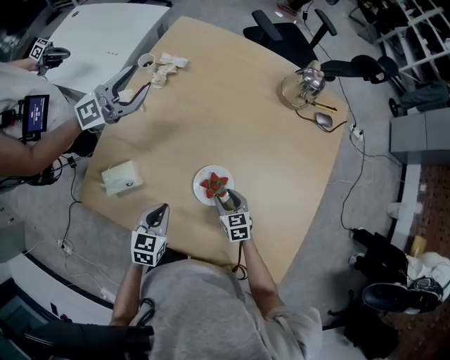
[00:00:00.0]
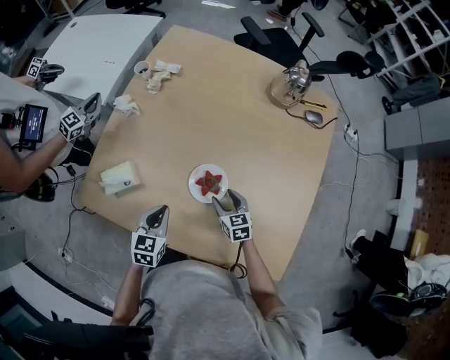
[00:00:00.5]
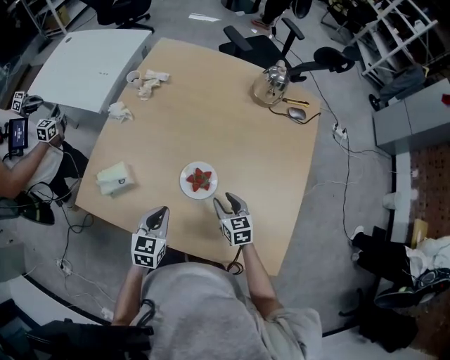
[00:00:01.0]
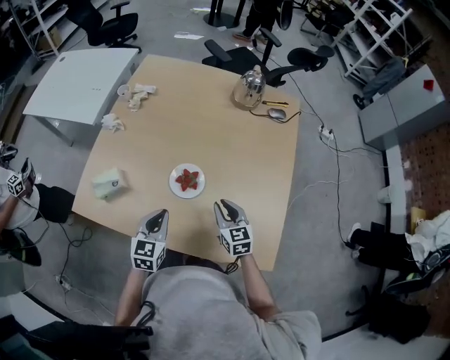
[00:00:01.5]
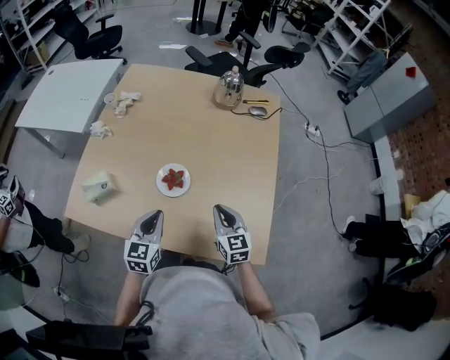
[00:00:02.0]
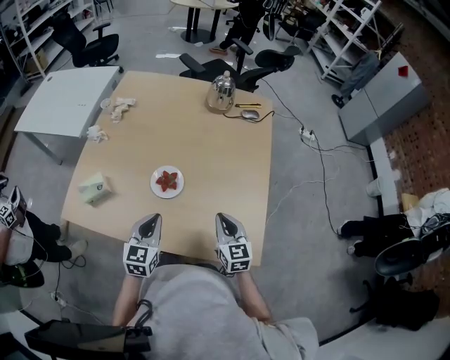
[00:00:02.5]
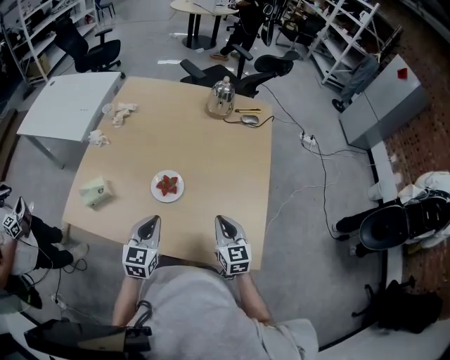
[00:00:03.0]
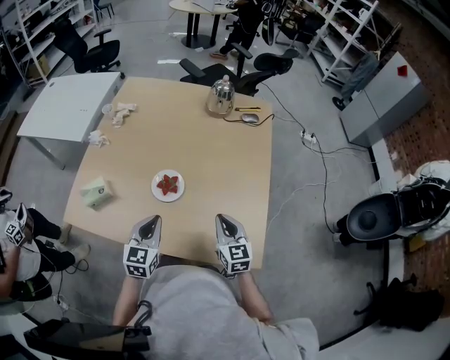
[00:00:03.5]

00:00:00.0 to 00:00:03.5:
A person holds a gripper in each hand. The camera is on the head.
00:00:00.0 to 00:00:02.0: The right gripper heads upward, backward and to the right, covering approximately 25 cm, rotates about 30 degrees, and closes up. Meanwhile the left gripper goes about 20 cm to the right, upward and backward.
00:00:02.0 to 00:00:03.5: The grippers move only a little.

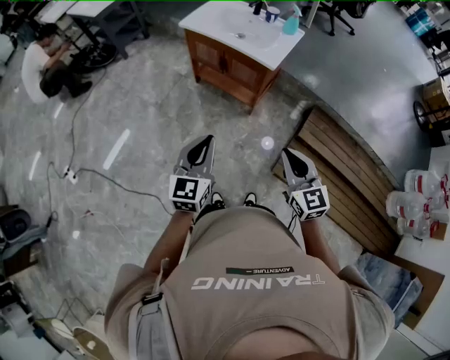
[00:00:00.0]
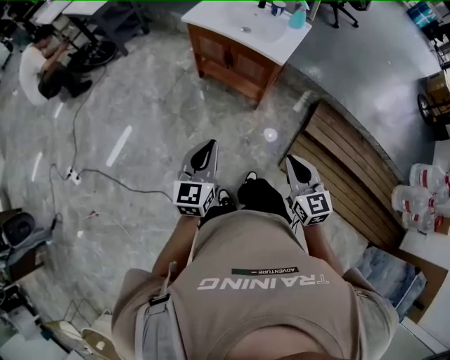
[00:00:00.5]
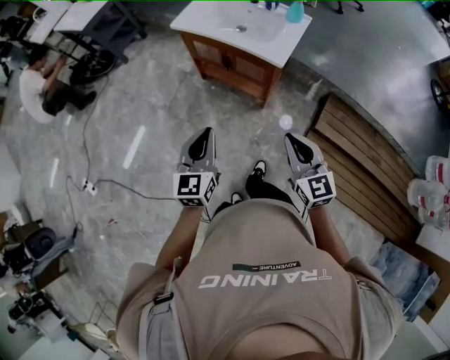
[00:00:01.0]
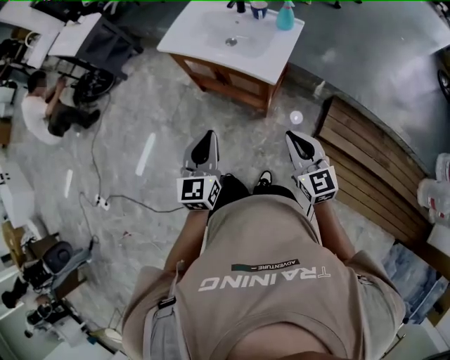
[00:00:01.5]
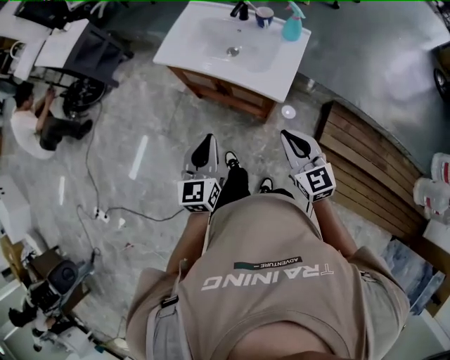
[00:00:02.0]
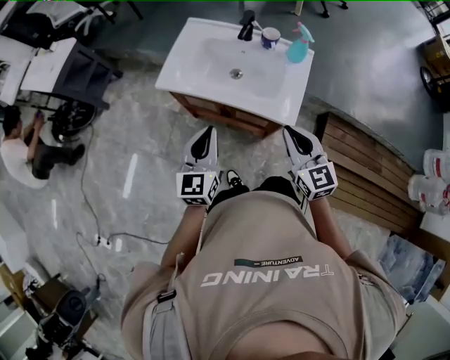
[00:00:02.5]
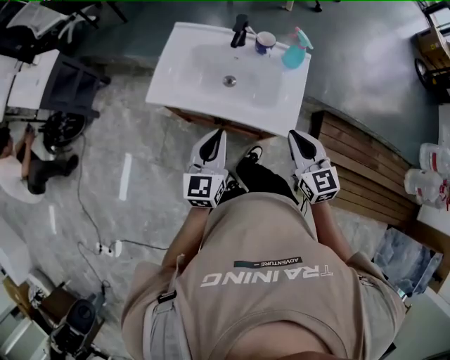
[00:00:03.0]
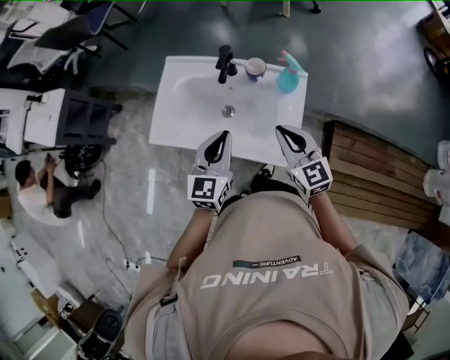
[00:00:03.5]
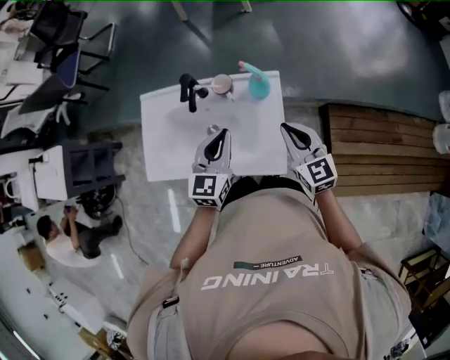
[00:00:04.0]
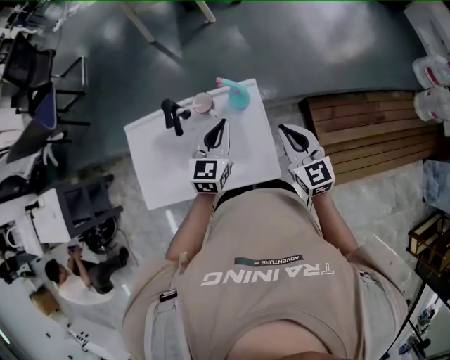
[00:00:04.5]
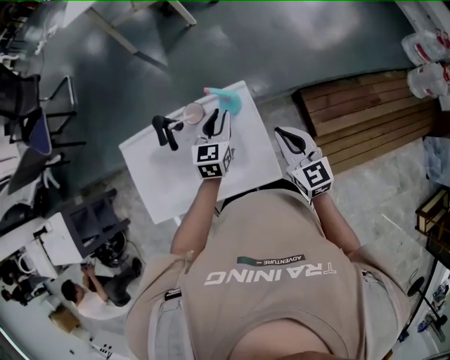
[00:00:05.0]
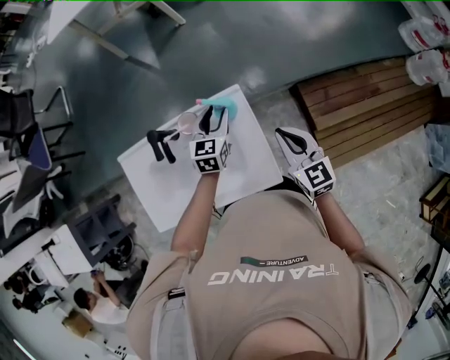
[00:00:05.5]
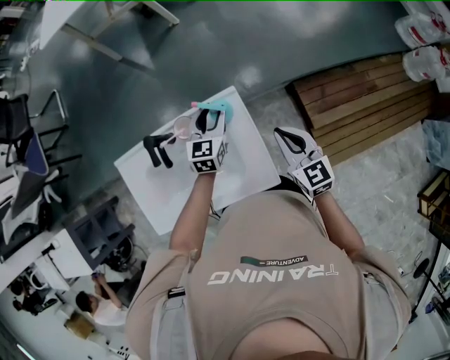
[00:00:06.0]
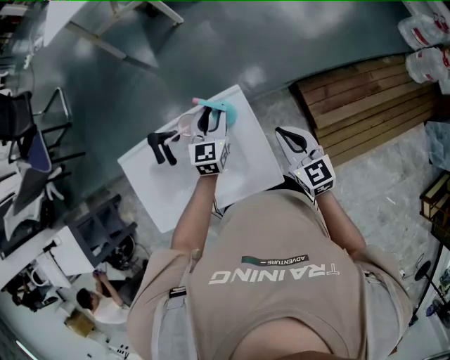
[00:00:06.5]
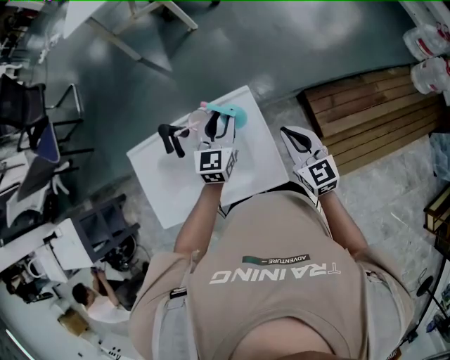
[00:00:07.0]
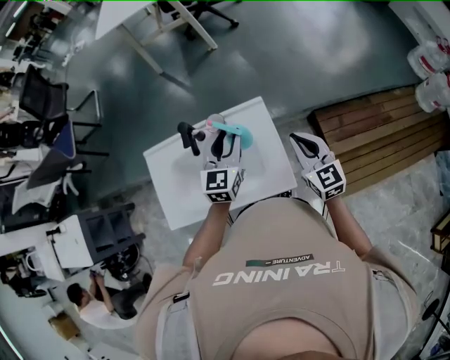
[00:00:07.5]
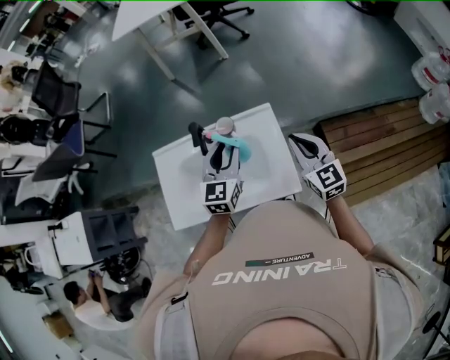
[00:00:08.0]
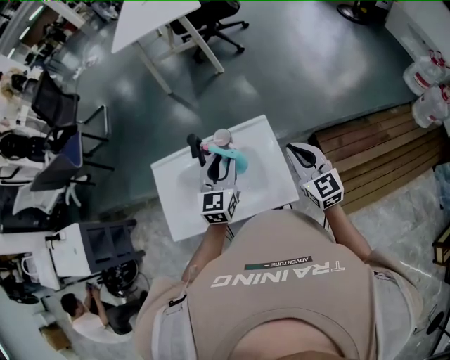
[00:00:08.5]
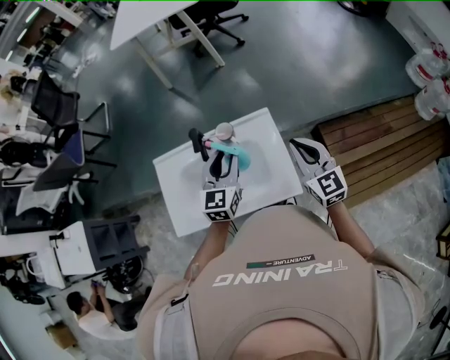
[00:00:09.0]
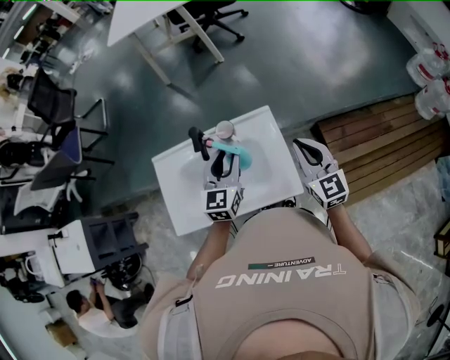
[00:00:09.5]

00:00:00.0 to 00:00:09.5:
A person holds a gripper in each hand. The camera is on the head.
00:00:00.0 to 00:00:02.0: Both grippers travel together forward, some 30 cm.
00:00:02.0 to 00:00:04.0: The left gripper ends up approximately 40 cm from where it was, and turns by about 30 degrees. Meanwhile the right gripper shifts by approximately 30 cm, and changes its angle by some 30 degrees.
00:00:04.0 to 00:00:05.5: The right gripper shifts about 5 cm to the right. Meanwhile the left gripper travels forward, downward and to the right by approximately 20 cm, and opens its fingers.
00:00:05.5 to 00:00:07.5: The left gripper heads upward and backward, covering some 15 cm.
00:00:07.5 to 00:00:09.5: The left gripper moves about 5 cm.

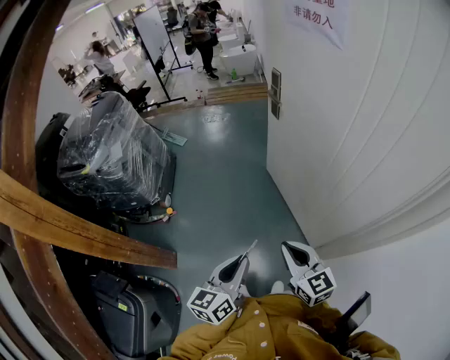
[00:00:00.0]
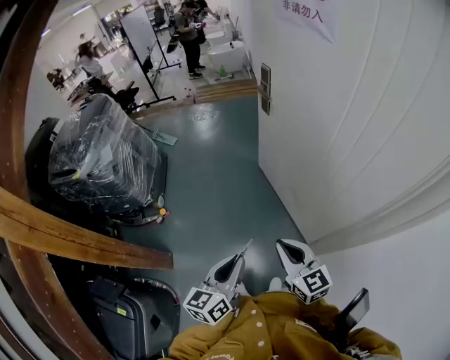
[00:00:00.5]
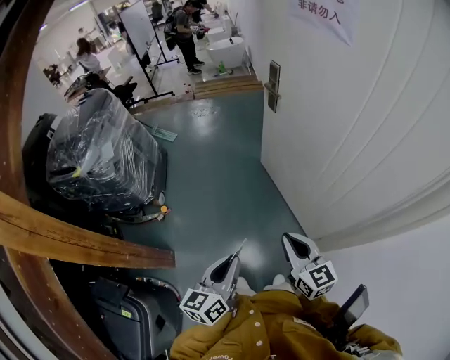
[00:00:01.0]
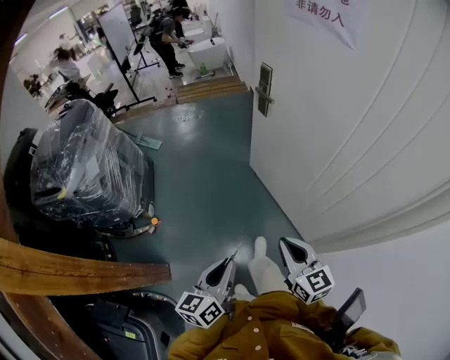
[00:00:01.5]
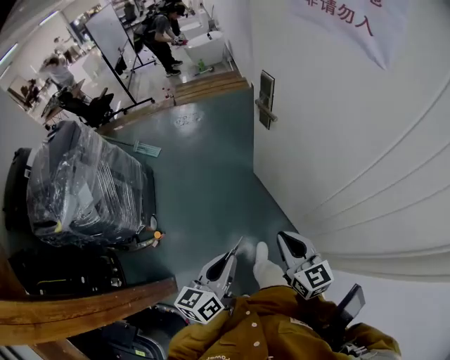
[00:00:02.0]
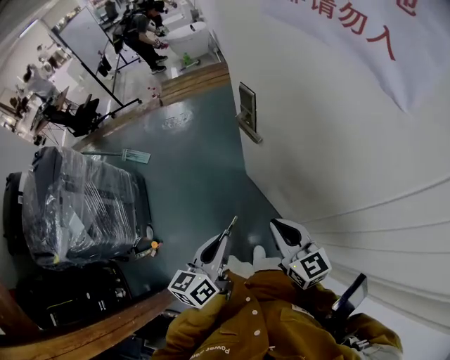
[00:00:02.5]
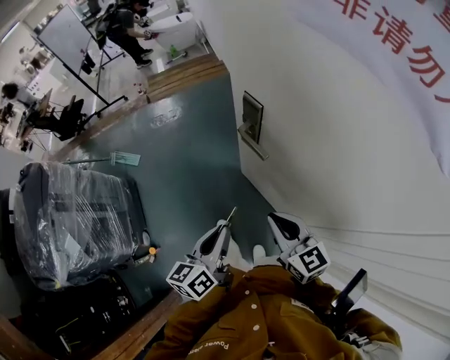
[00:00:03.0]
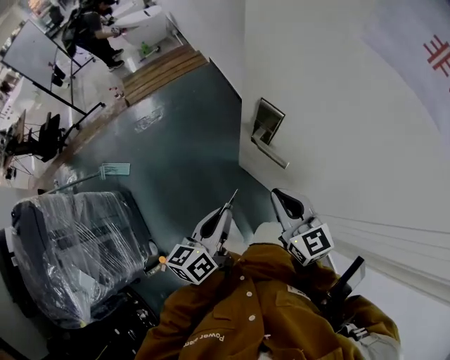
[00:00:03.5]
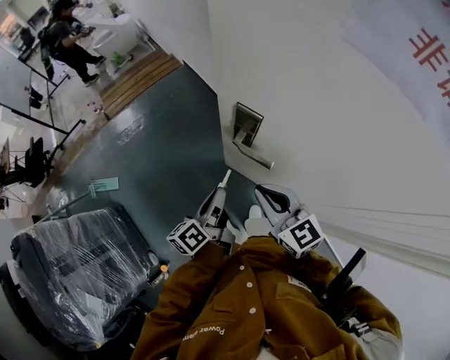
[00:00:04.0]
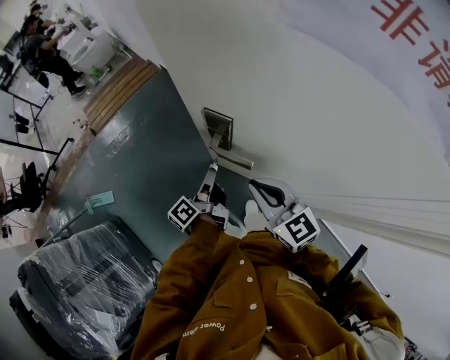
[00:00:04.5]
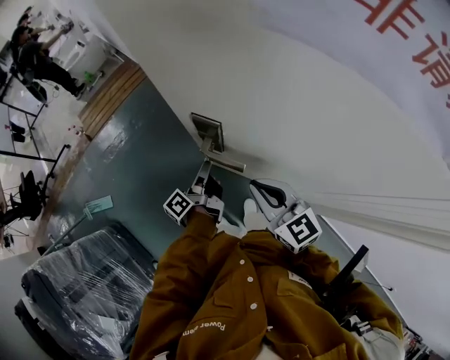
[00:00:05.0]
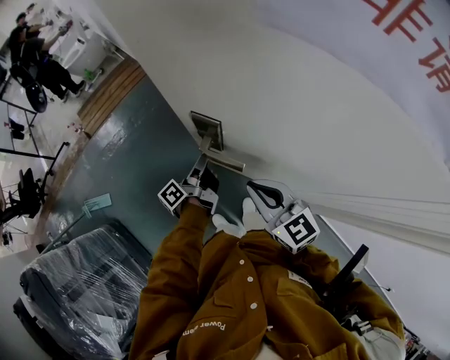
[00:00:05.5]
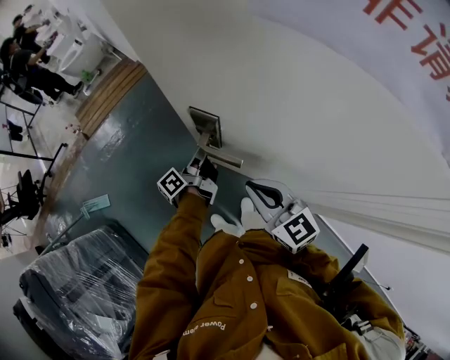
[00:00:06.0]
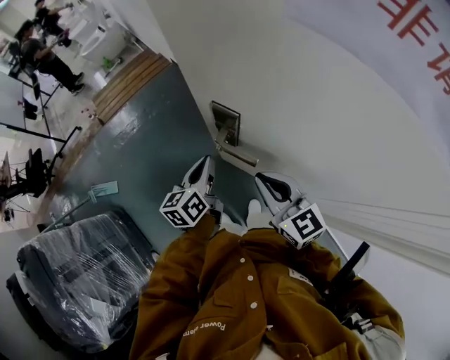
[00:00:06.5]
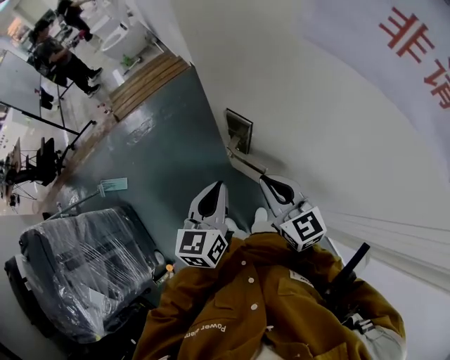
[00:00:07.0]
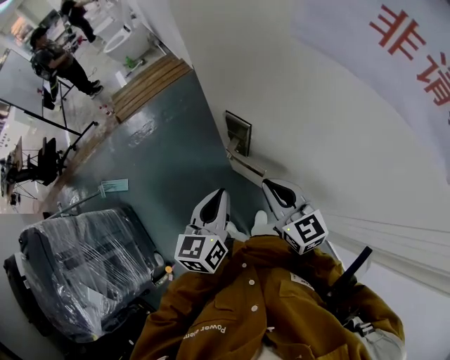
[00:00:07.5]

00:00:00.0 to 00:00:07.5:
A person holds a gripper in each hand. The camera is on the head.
00:00:00.0 to 00:00:02.0: The grippers both shift forward by some 25 cm.
00:00:02.0 to 00:00:04.0: The grippers both shift forward by approximately 40 cm. The left gripper swivels roughly 30 degrees.
00:00:04.0 to 00:00:05.5: The right gripper shifts some 5 cm to the right. Meanwhile the left gripper shifts roughly 15 cm forward, downward and to the right, and swivels some 30 degrees.
00:00:05.5 to 00:00:07.5: The left gripper travels upward and backward by some 20 cm, and rotates around the line of its fingers by some 70 degrees, clockwise from behind.

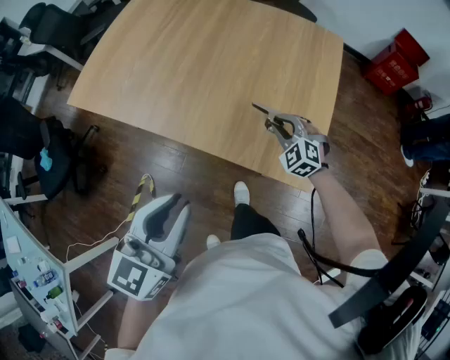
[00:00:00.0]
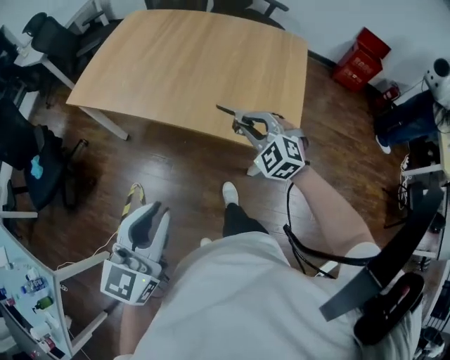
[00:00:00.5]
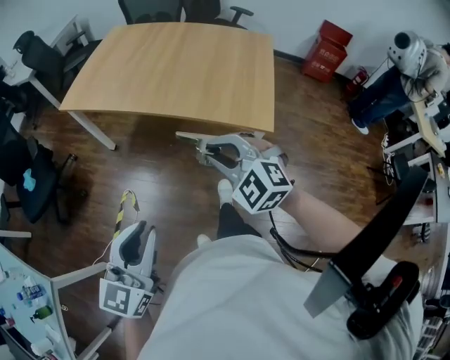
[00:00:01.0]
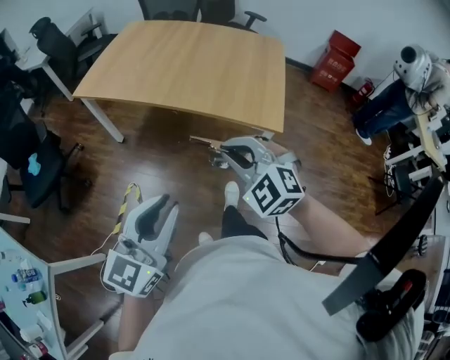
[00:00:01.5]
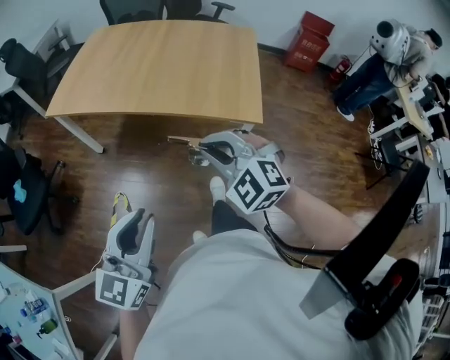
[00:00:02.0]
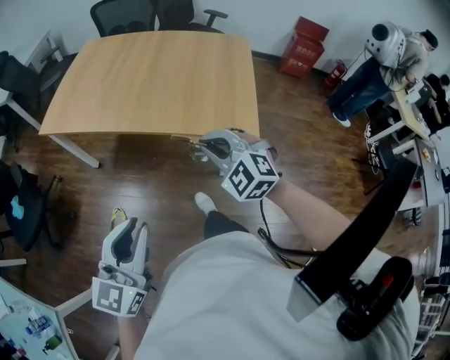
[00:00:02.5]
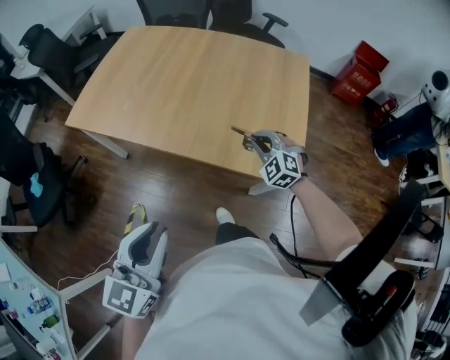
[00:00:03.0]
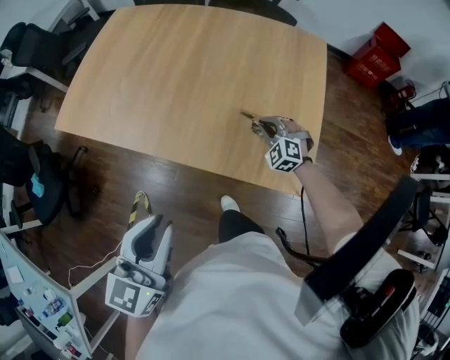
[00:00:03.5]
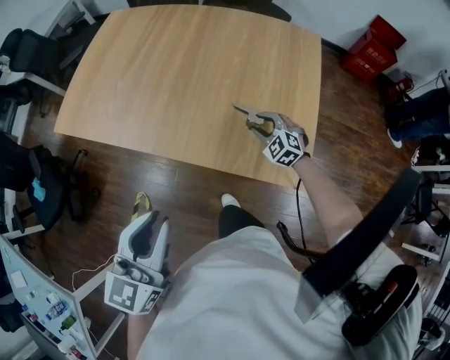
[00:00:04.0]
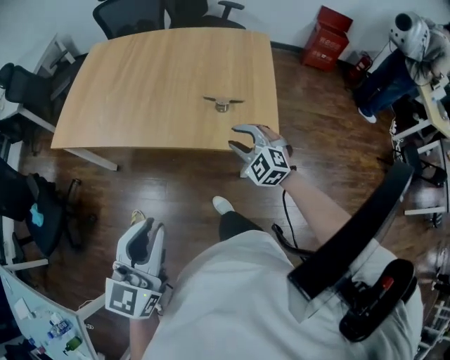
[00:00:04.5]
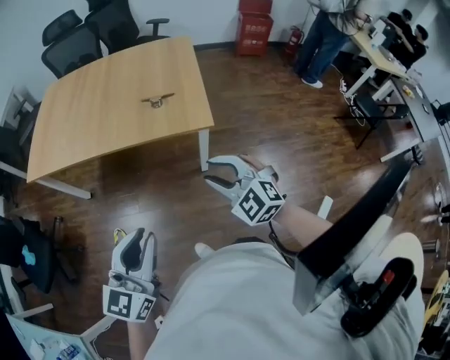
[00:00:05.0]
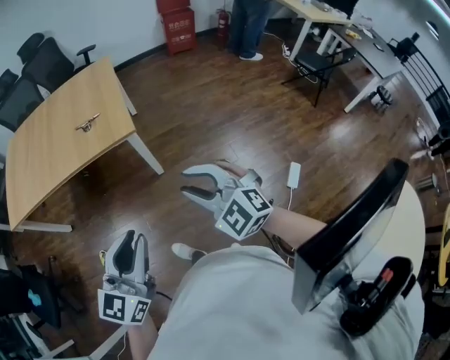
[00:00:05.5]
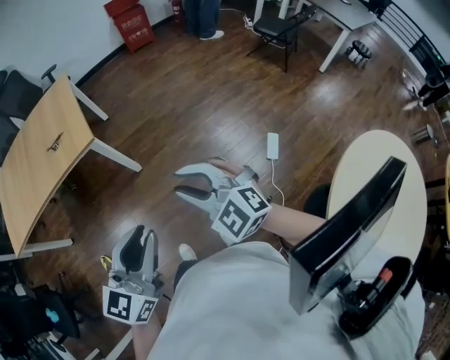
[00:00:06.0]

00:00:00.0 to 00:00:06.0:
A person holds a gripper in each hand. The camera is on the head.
00:00:00.0 to 00:00:02.0: The left gripper shifts about 25 cm backward and to the left; the right gripper moves backward, upward and to the left, roughly 40 cm.
00:00:02.0 to 00:00:04.0: The left gripper travels forward by roughly 20 cm. The right gripper heads forward, downward and to the right, covering some 50 cm, and opens.
00:00:04.0 to 00:00:06.0: The pair of grippers is taken about 60 cm. The left gripper turns by approximately 50 degrees. The right gripper turns by roughly 40 degrees.
